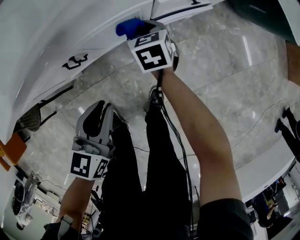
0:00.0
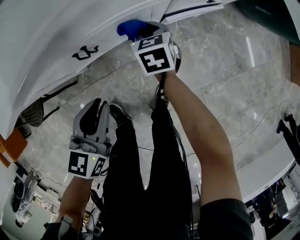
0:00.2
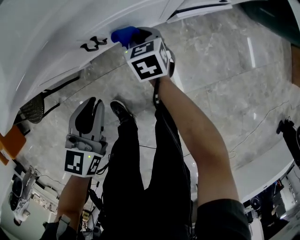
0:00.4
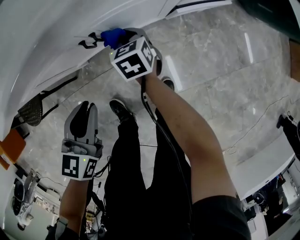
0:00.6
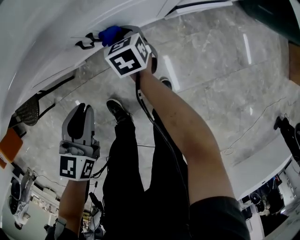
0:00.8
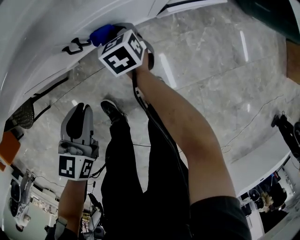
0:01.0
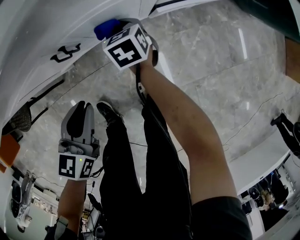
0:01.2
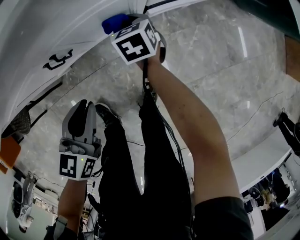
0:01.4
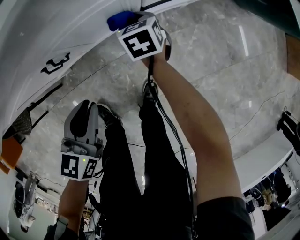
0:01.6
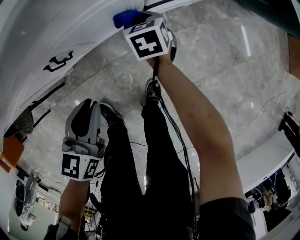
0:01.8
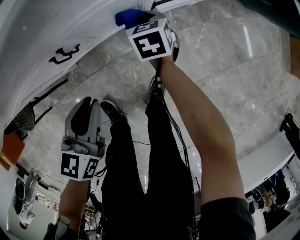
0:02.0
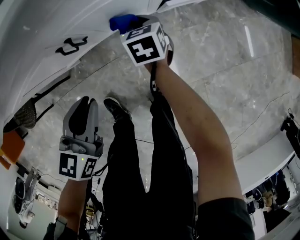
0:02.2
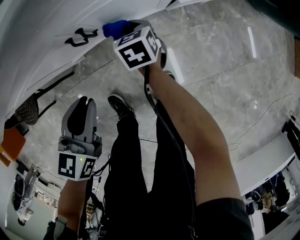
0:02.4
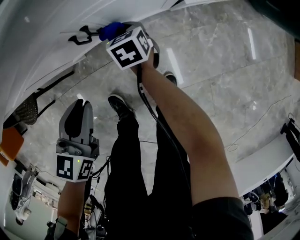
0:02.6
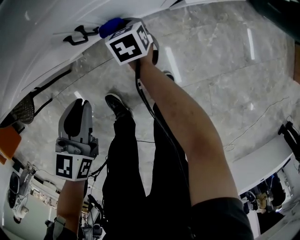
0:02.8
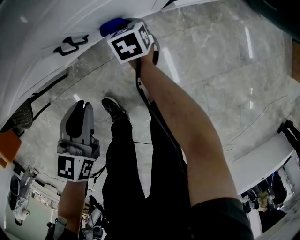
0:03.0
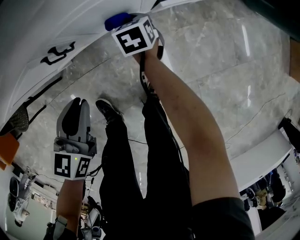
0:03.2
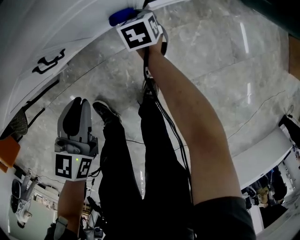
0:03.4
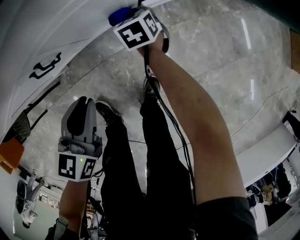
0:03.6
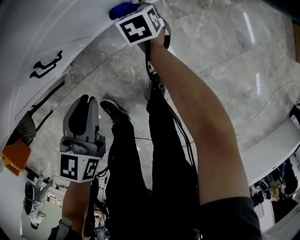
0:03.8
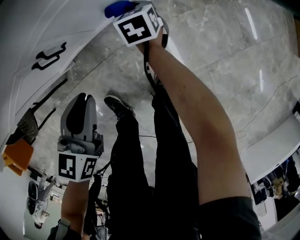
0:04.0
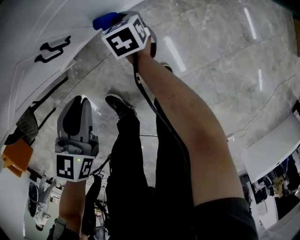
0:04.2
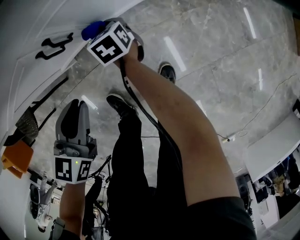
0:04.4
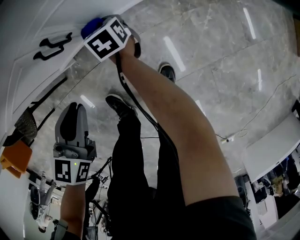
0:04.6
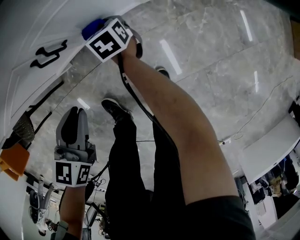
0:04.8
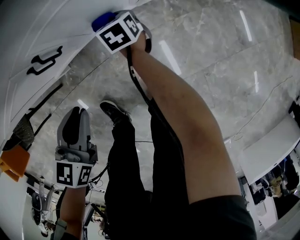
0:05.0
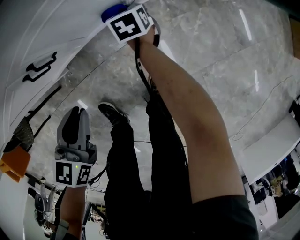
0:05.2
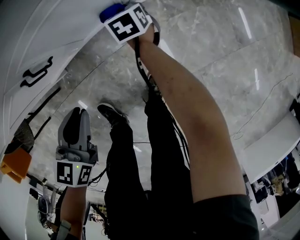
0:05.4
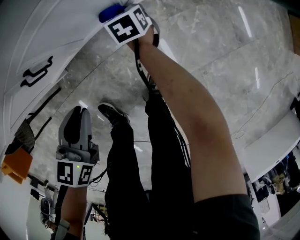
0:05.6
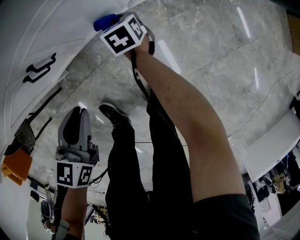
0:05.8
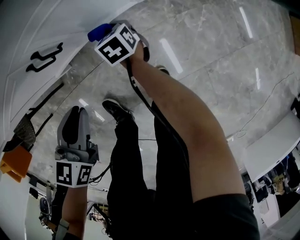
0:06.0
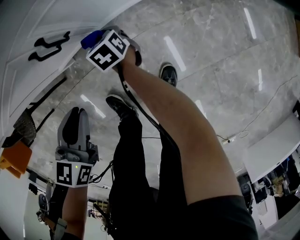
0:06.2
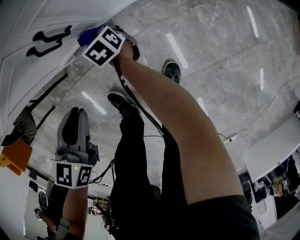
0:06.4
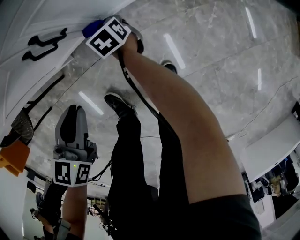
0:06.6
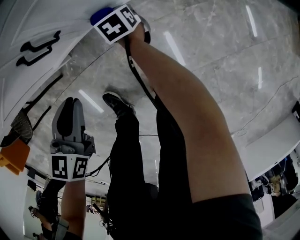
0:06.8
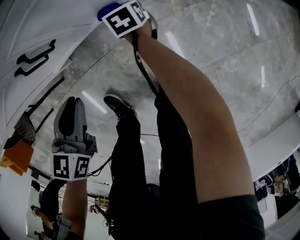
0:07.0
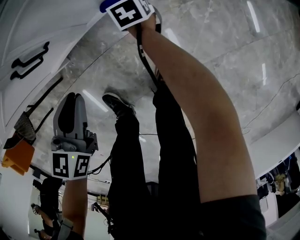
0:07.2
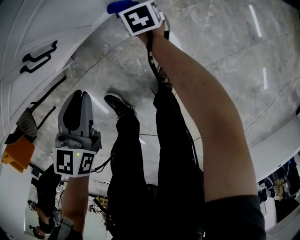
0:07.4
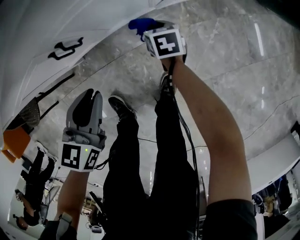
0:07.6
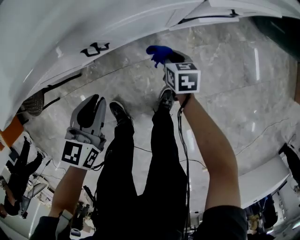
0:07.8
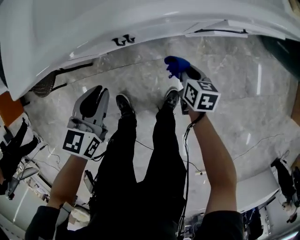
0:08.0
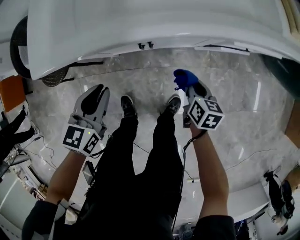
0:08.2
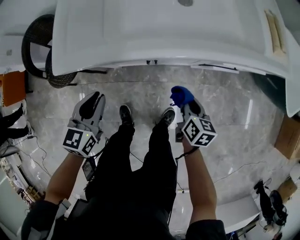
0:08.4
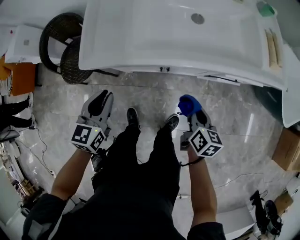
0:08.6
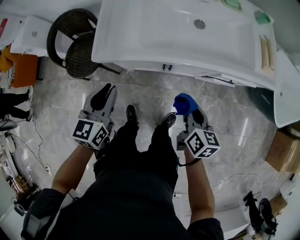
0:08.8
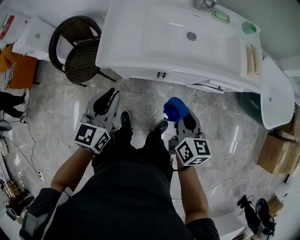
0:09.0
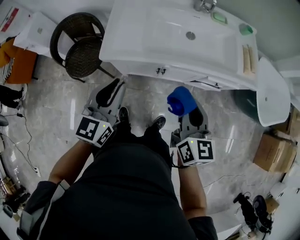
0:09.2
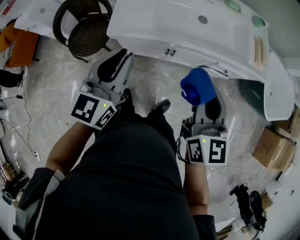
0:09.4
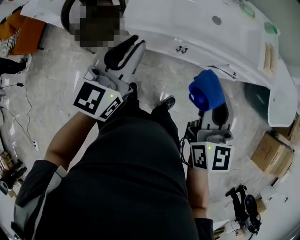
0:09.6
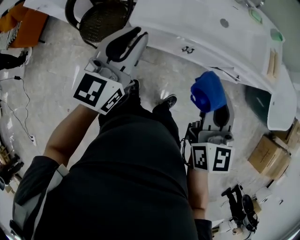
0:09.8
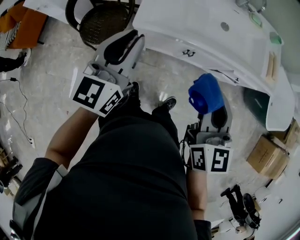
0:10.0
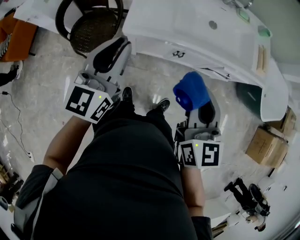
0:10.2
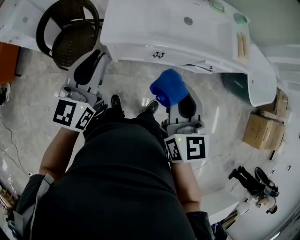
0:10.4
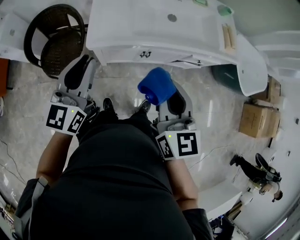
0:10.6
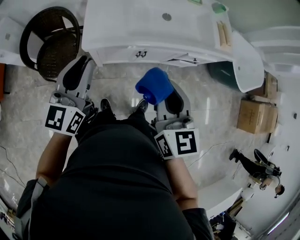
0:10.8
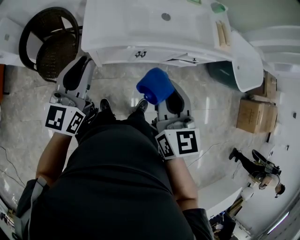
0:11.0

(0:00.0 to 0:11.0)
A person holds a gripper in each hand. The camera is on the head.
0:00.0 - 0:01.6: The grippers both shift downward by about 5 cm. The left gripper moves some 15 cm to the left and comes back. The right gripper reaches about 15 cm to the left, then returns.
0:01.6 - 0:03.2: The right gripper moves to the left and downward, approximately 10 cm; the left gripper heads to the left, covering approximately 5 cm.
0:03.2 - 0:04.8: The left gripper goes to the right and returns, about 5 cm each way. Meanwhile the right gripper travels to the left by about 5 cm.
0:04.8 - 0:06.2: The left gripper reaches about 5 cm to the right, then returns, while the right gripper travels backward by some 5 cm, and moves some 15 cm to the right and comes back.
0:06.2 - 0:07.8: The left gripper travels upward by some 10 cm; the right gripper heads to the right and upward, covering about 20 cm.
0:07.8 - 0:09.4: The two grippers go roughly 60 cm upward. The left gripper tips its fingers upward by about 30 degrees. The right gripper tilts its fingers some 40 degrees upward.
0:09.4 - 0:11.0: Both grippers move to the left, roughly 10 cm.

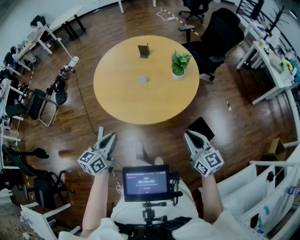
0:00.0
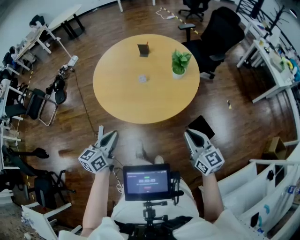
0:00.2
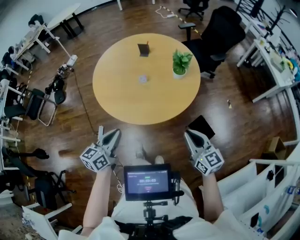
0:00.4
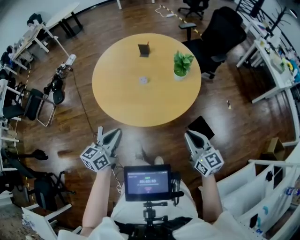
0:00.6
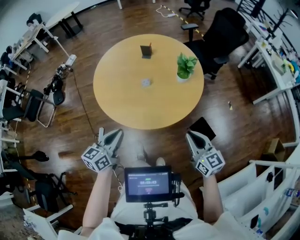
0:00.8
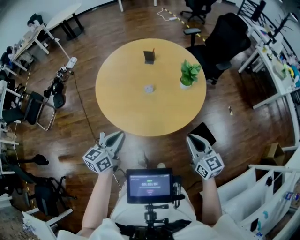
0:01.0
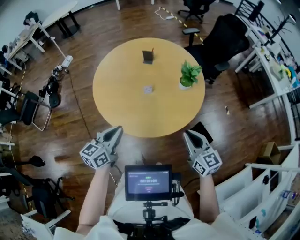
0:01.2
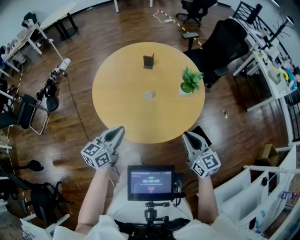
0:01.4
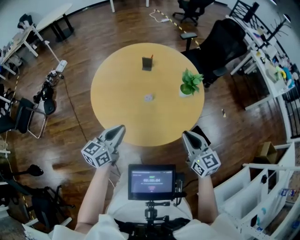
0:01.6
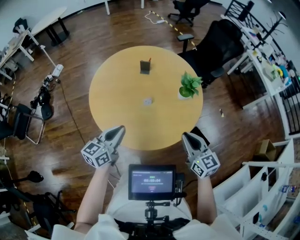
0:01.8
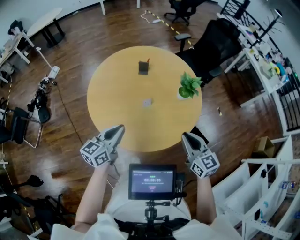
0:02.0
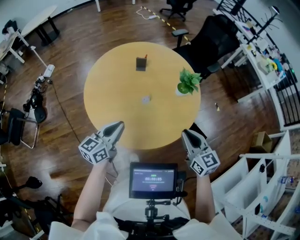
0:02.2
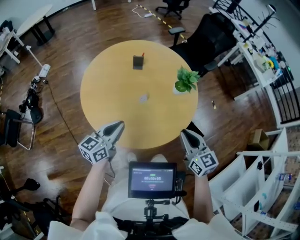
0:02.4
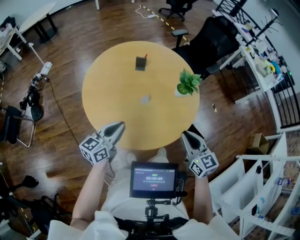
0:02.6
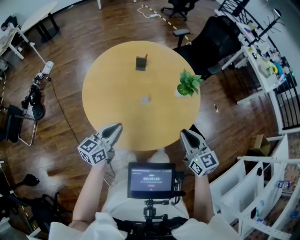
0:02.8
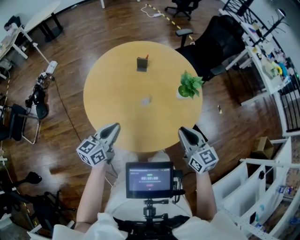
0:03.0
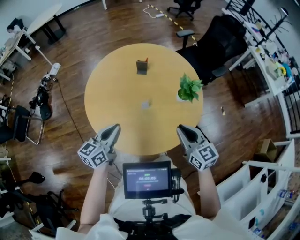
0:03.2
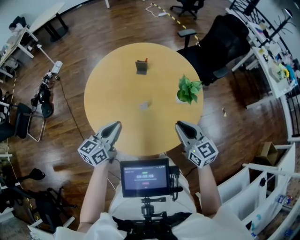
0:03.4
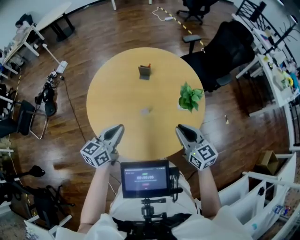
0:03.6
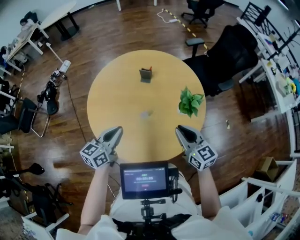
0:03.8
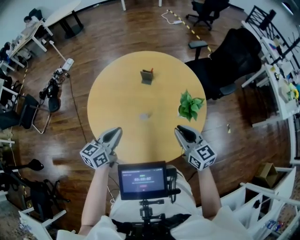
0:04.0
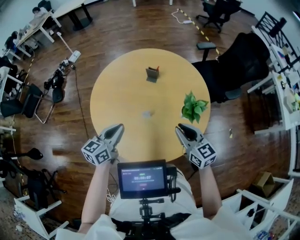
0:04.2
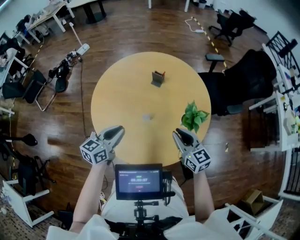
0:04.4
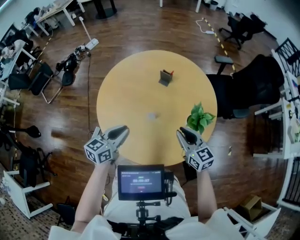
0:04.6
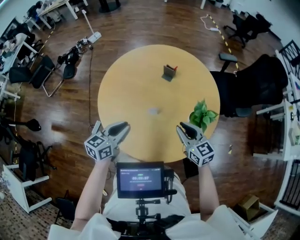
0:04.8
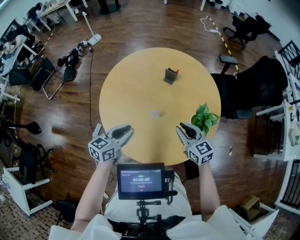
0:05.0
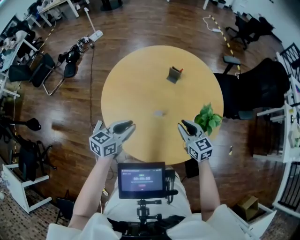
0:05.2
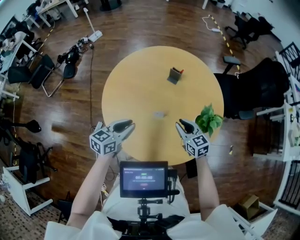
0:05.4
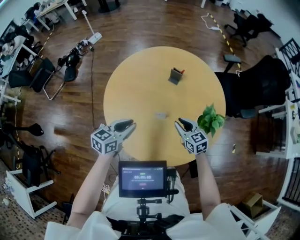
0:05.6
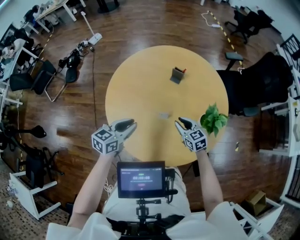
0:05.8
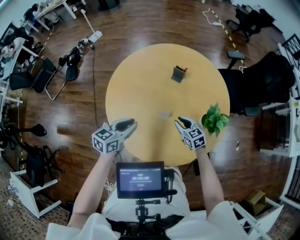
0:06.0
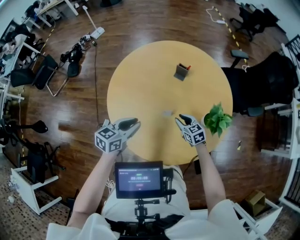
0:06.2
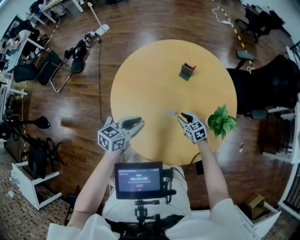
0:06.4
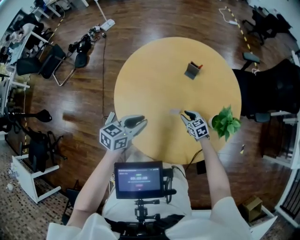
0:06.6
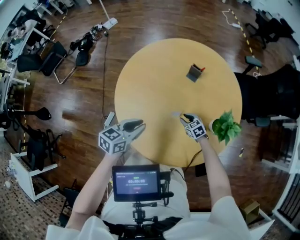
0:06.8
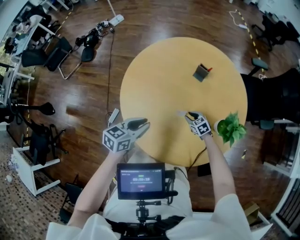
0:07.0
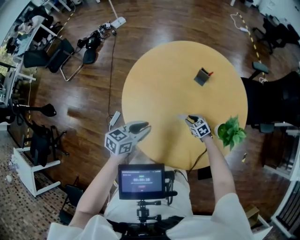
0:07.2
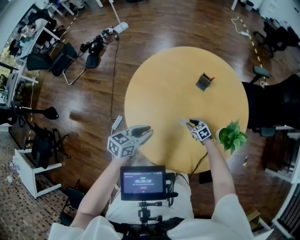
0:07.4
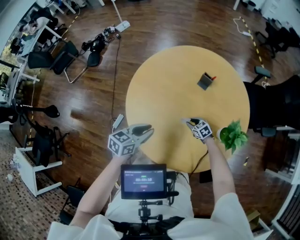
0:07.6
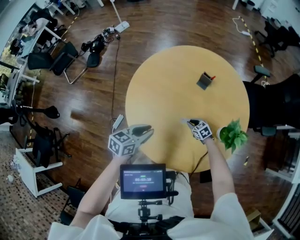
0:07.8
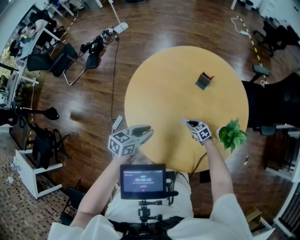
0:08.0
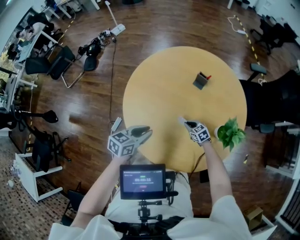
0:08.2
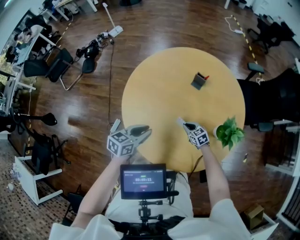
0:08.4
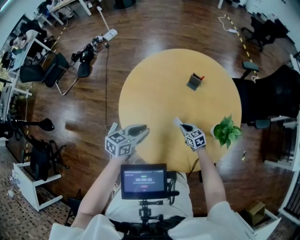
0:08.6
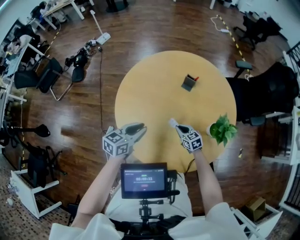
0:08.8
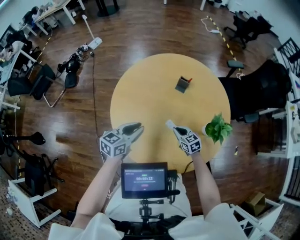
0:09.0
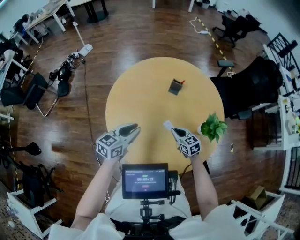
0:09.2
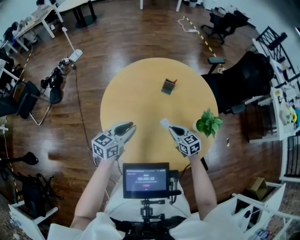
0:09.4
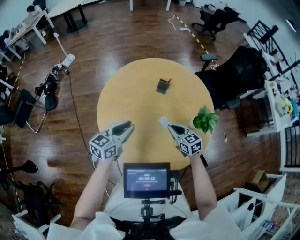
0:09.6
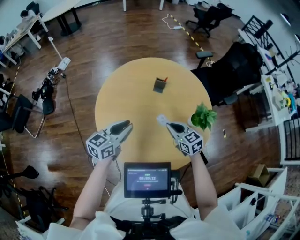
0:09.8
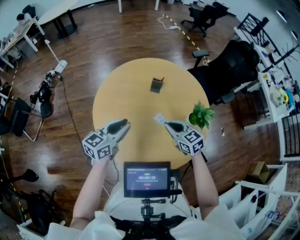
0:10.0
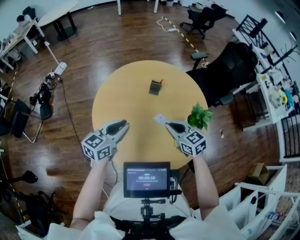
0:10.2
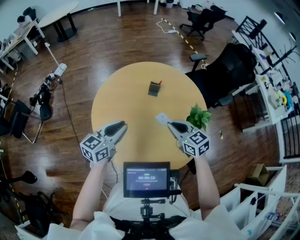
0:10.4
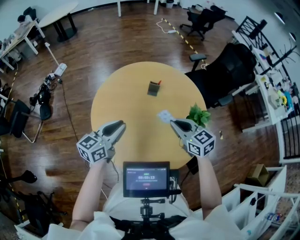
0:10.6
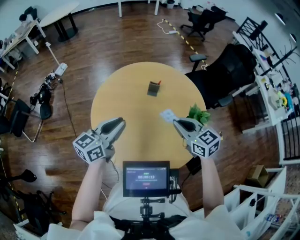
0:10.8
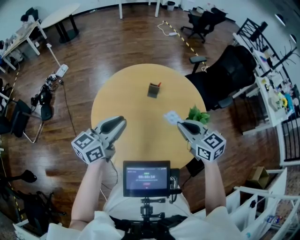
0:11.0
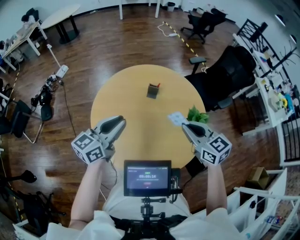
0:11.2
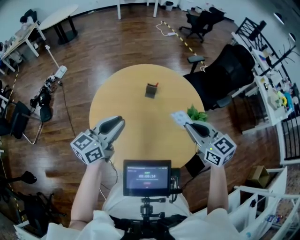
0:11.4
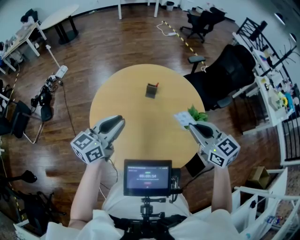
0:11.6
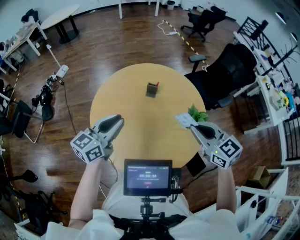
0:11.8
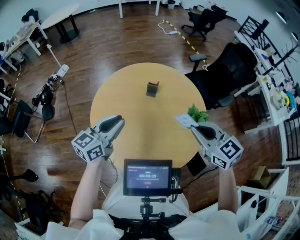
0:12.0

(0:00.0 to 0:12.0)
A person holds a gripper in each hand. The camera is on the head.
0:00.0 - 0:01.6: The right gripper goes approximately 20 cm forward and to the left. The left gripper travels forward by about 20 cm.
0:01.6 - 0:03.0: Both grippers travel together forward, some 5 cm.
0:03.0 - 0:04.4: The right gripper travels forward and to the right by some 15 cm, and turns by some 20 degrees. The left gripper moves to the right, some 10 cm.
0:04.4 - 0:06.0: The left gripper shifts roughly 5 cm to the left. The right gripper travels downward, forward and to the left by some 20 cm.
0:06.0 - 0:07.6: The right gripper goes approximately 20 cm downward, and rotates roughly 20 degrees.
0:07.6 - 0:09.0: The left gripper shifts by some 5 cm. The right gripper travels upward by about 15 cm, changes its angle by roughly 20 degrees, and closes.
0:09.0 - 0:10.4: The left gripper goes about 10 cm upward; the right gripper shifts some 25 cm upward.
0:10.4 - 0:12.0: The left gripper travels upward by roughly 5 cm; the right gripper travels upward and to the right by about 15 cm.

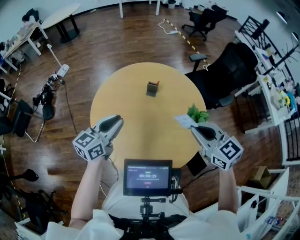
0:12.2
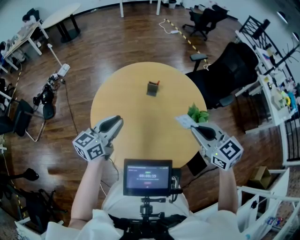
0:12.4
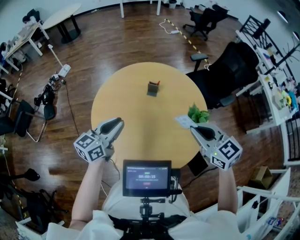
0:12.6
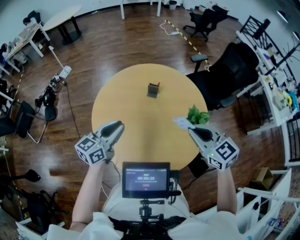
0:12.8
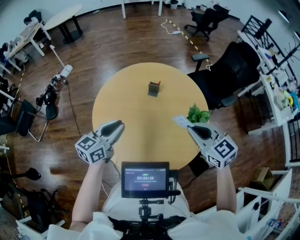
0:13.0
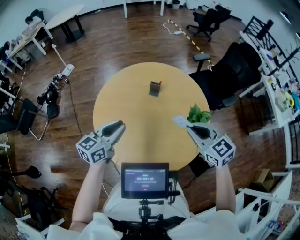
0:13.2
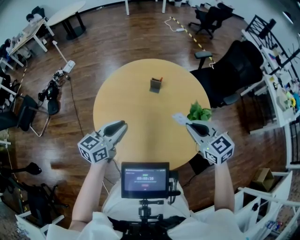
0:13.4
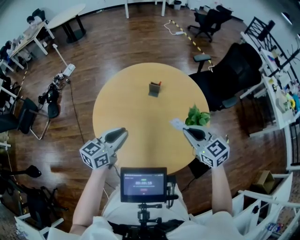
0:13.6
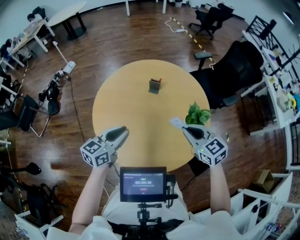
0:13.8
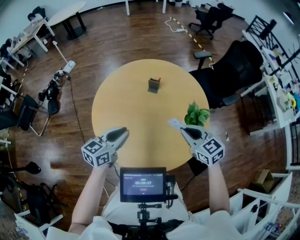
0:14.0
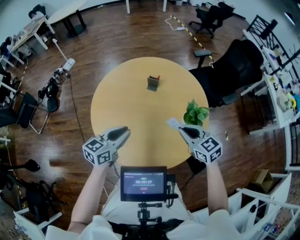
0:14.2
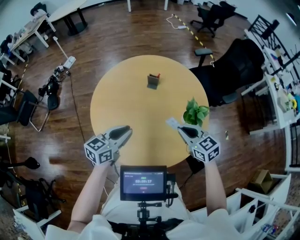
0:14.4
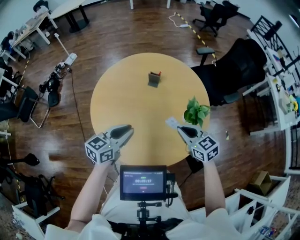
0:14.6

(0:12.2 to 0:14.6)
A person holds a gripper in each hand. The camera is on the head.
0:12.2 - 0:13.4: The left gripper shifts by some 5 cm, while the right gripper heads downward, covering some 5 cm.
0:13.4 - 0:14.6: The left gripper is displaced to the right by about 5 cm, while the right gripper moves downward, about 10 cm.
